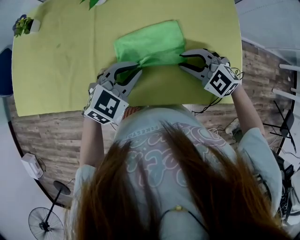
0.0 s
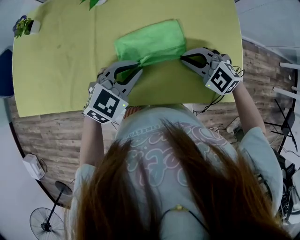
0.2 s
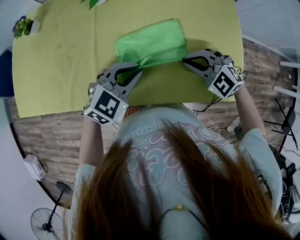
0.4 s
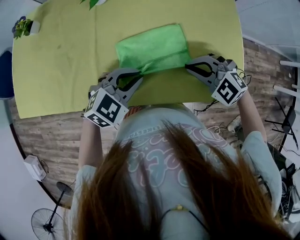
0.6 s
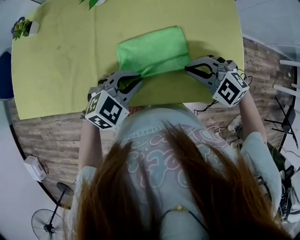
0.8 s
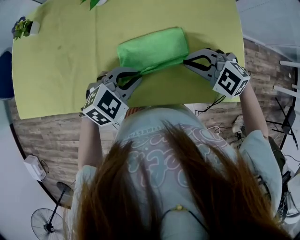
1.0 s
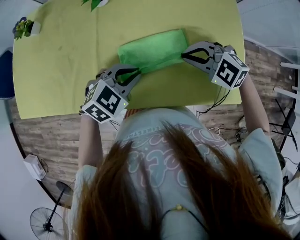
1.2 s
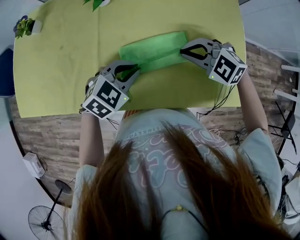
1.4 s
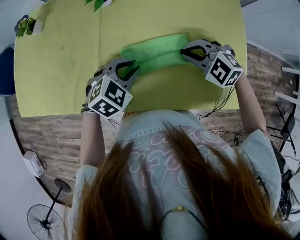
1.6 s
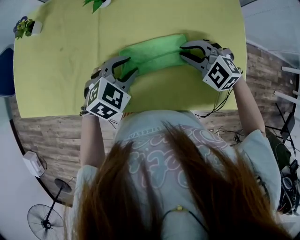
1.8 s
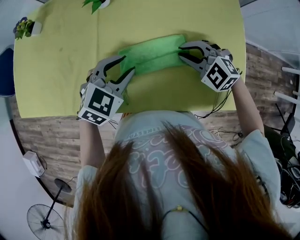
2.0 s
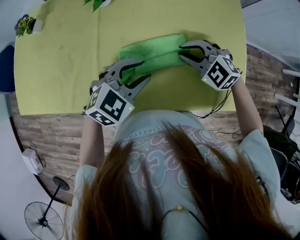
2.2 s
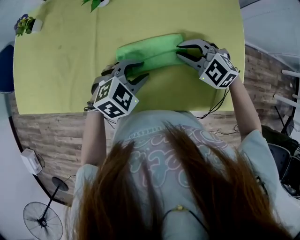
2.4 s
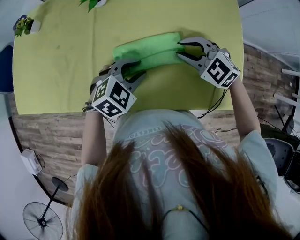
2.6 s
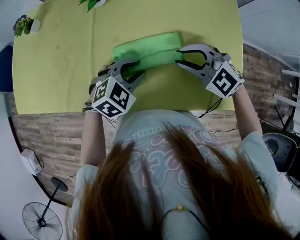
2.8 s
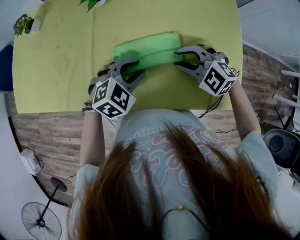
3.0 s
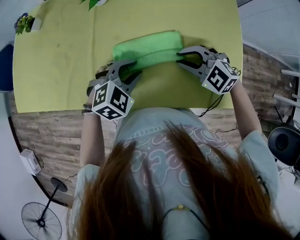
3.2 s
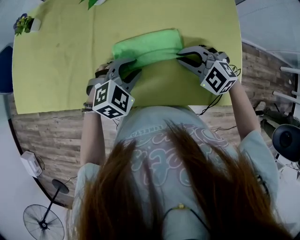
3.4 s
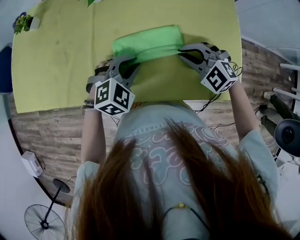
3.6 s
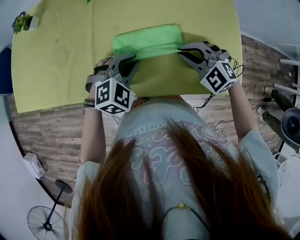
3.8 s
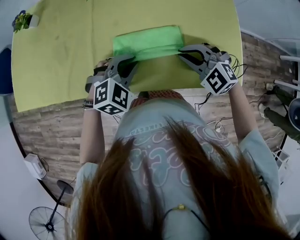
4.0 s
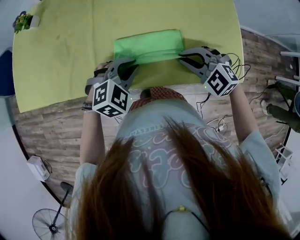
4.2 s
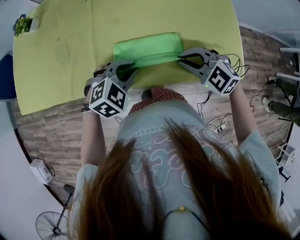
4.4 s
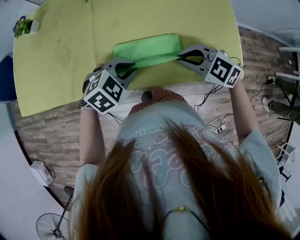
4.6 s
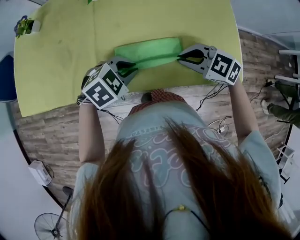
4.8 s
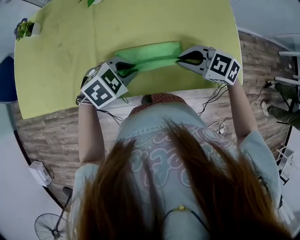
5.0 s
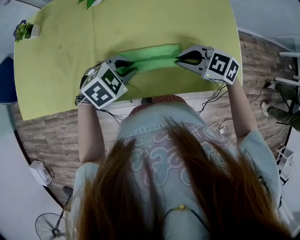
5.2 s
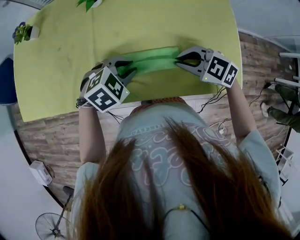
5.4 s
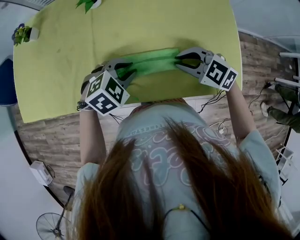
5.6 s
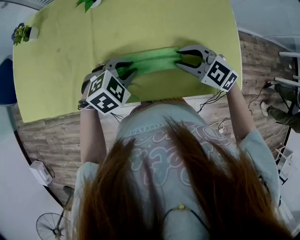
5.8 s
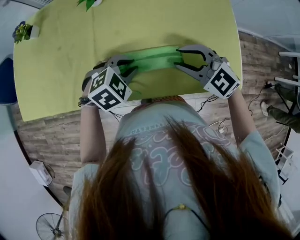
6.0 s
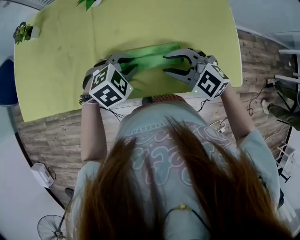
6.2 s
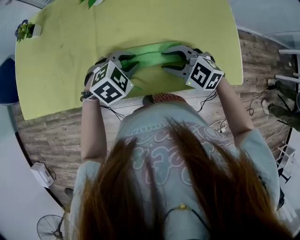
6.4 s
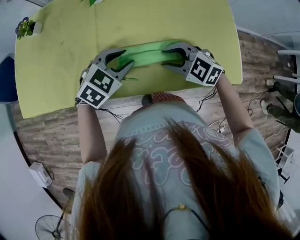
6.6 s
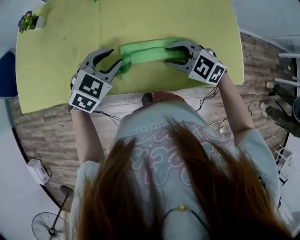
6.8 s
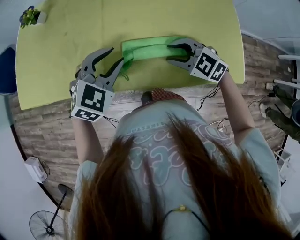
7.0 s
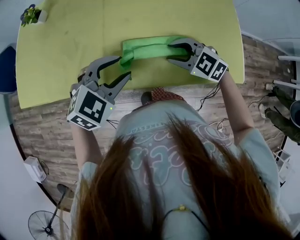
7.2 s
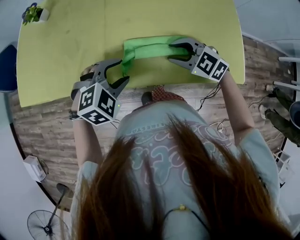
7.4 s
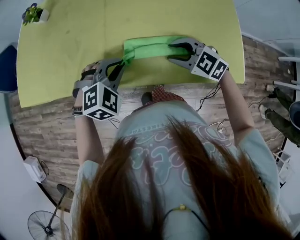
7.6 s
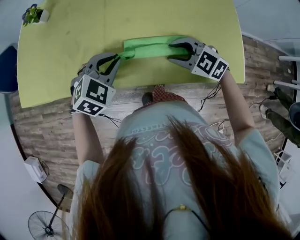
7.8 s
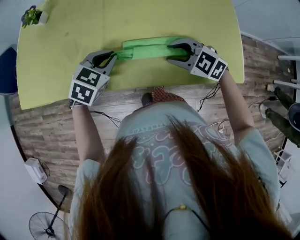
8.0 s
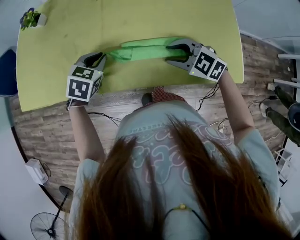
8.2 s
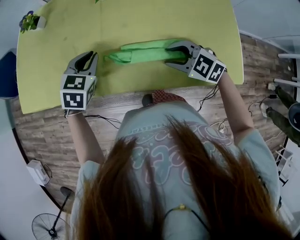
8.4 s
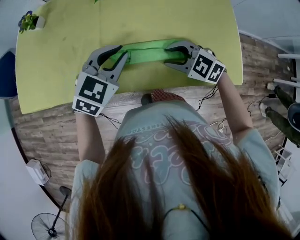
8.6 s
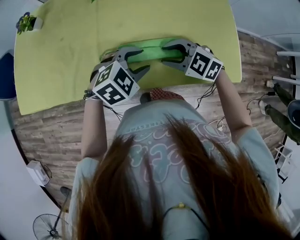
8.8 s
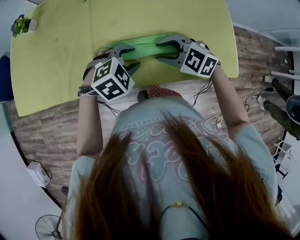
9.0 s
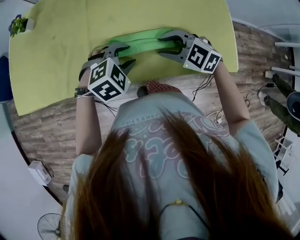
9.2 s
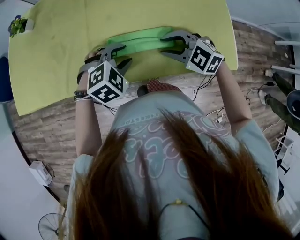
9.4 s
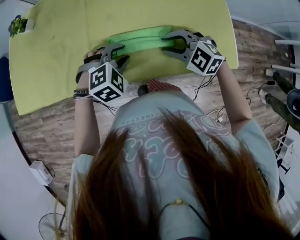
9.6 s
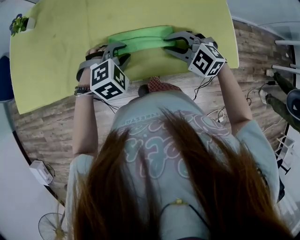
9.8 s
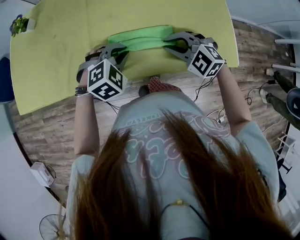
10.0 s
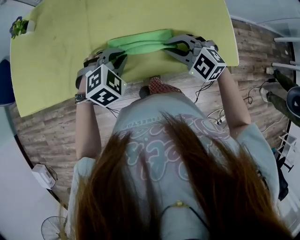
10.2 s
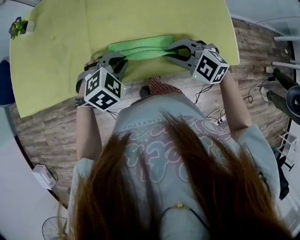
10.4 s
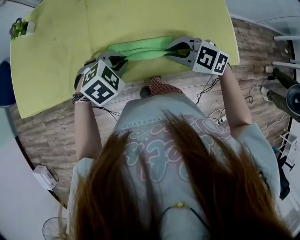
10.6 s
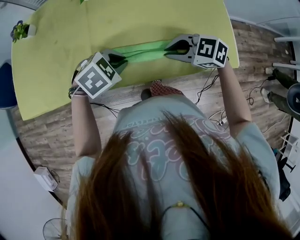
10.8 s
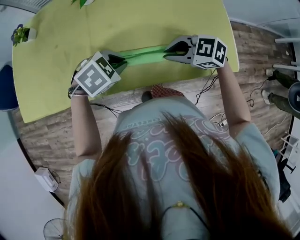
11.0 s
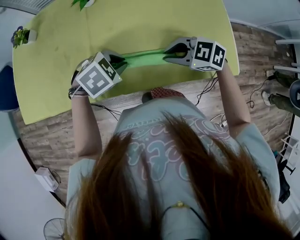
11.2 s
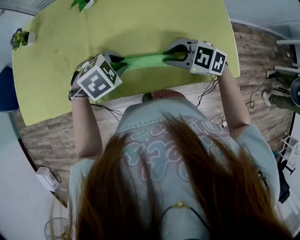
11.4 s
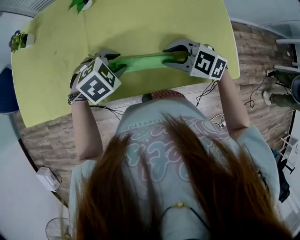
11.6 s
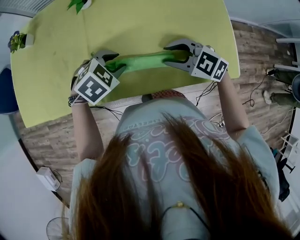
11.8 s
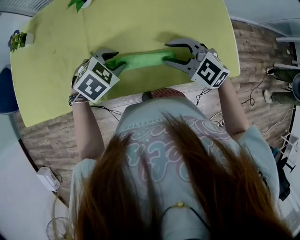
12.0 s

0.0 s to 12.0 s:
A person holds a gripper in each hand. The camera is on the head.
0.0 to 1.6 s: The left gripper moves about 5 cm.
1.6 to 3.0 s: The right gripper opens.
3.0 to 4.4 s: The right gripper travels backward by about 10 cm, and closes. The left gripper heads backward and to the left, covering approximately 10 cm.
4.4 to 6.0 s: The left gripper moves approximately 5 cm, while the right gripper shifts by roughly 5 cm, and opens.
6.0 to 7.6 s: The left gripper shifts some 5 cm to the left, and opens and closes again; the right gripper shifts by roughly 5 cm.
7.6 to 9.0 s: The left gripper changes place by about 10 cm, and opens its fingers.
9.0 to 10.4 s: The left gripper closes up, while the right gripper ends up approximately 5 cm from where it was, and closes up.
10.4 to 12.0 s: The right gripper ends up some 5 cm from where it was, and opens its fingers; the left gripper ends up some 5 cm from where it was, and opens.

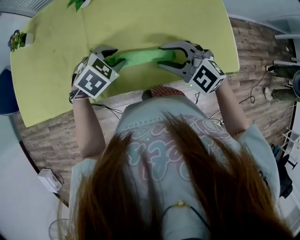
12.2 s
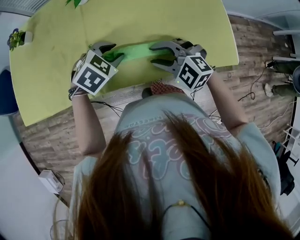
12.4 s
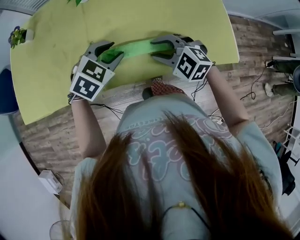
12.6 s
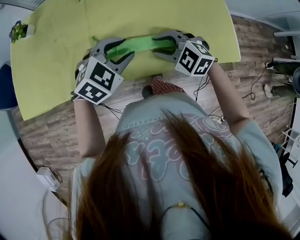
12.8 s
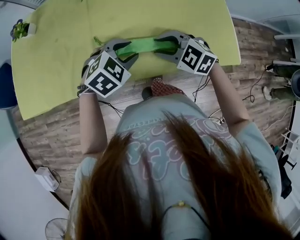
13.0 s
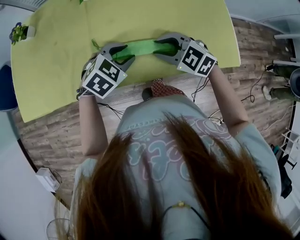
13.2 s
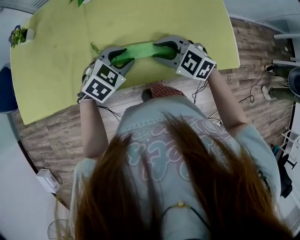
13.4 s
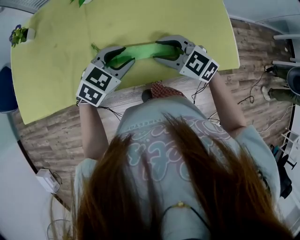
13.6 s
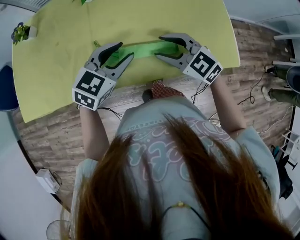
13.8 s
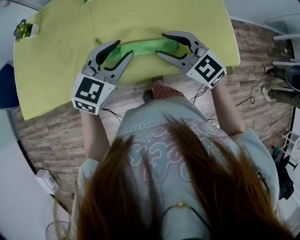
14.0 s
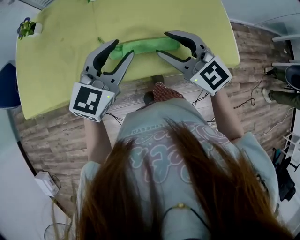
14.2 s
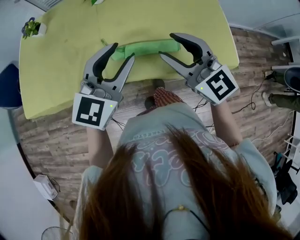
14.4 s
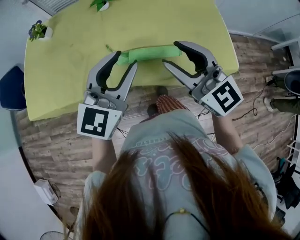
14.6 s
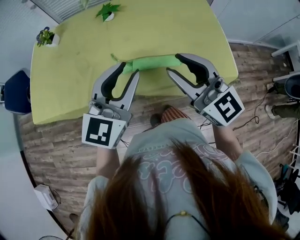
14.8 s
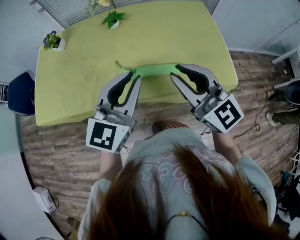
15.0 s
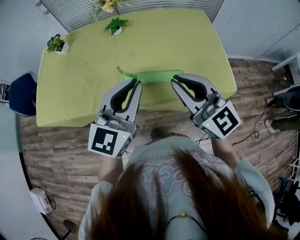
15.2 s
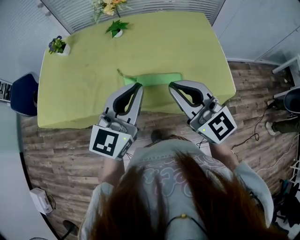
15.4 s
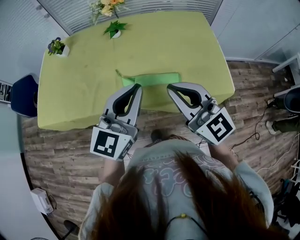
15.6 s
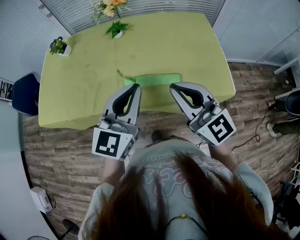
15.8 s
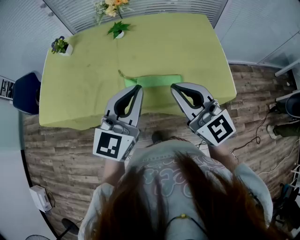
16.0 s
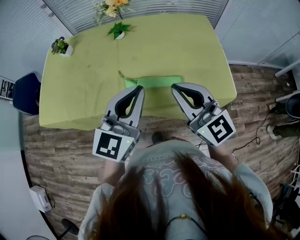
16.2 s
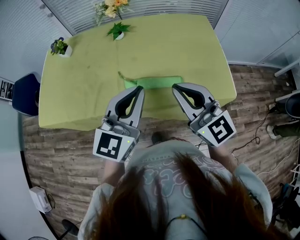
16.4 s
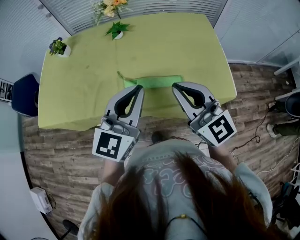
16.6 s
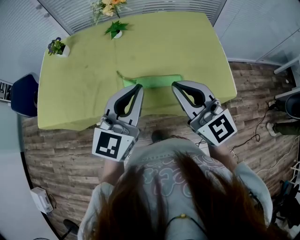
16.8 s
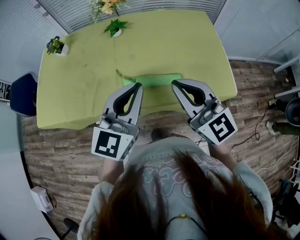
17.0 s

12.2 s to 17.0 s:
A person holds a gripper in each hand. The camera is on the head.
12.2 to 13.8 s: The left gripper swings up and down, some 5 cm each way, with 2 reversals, and tips its fingers upward by approximately 30 degrees.
13.8 to 15.4 s: The two grippers go roughly 20 cm upward and backward. The right gripper points its fingers approximately 30 degrees further upward, and closes up. Meanwhile the left gripper tips its fingers upward by approximately 30 degrees, and closes.
15.4 to 17.0 s: The grippers move only a little.

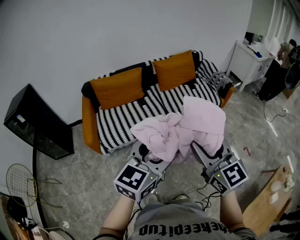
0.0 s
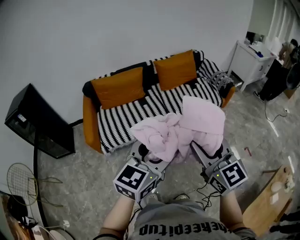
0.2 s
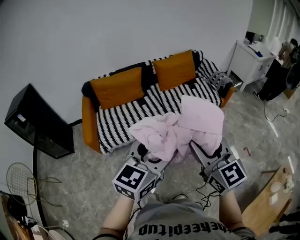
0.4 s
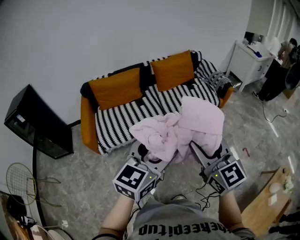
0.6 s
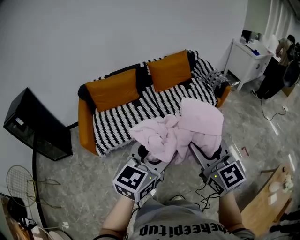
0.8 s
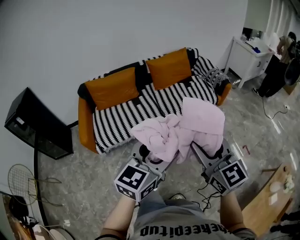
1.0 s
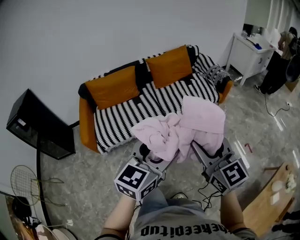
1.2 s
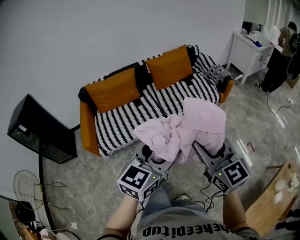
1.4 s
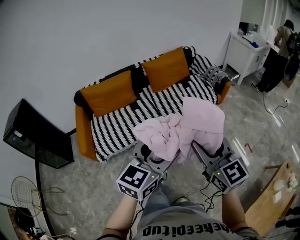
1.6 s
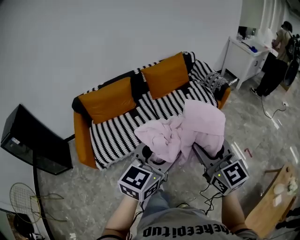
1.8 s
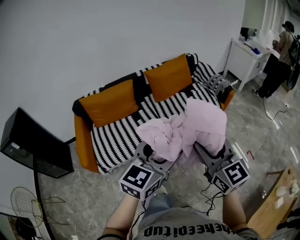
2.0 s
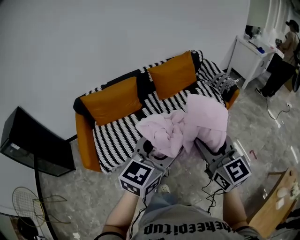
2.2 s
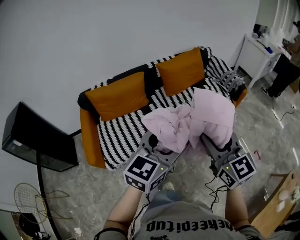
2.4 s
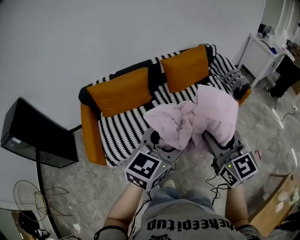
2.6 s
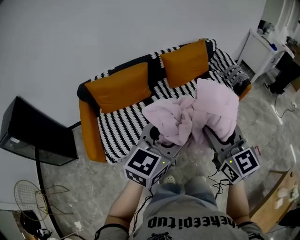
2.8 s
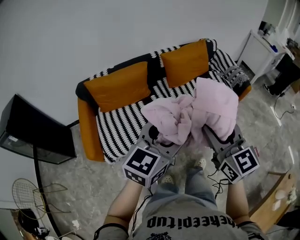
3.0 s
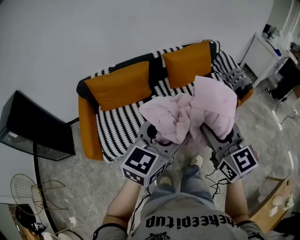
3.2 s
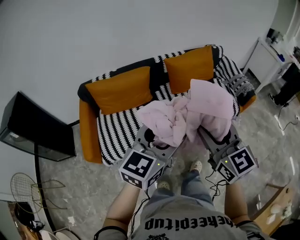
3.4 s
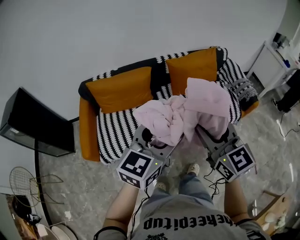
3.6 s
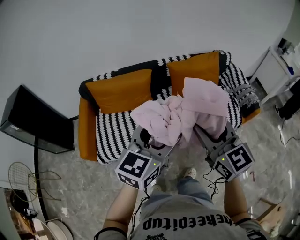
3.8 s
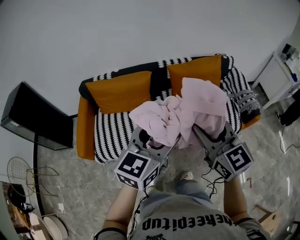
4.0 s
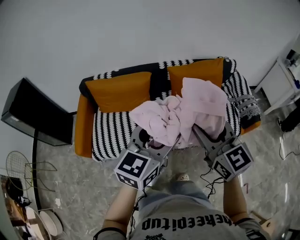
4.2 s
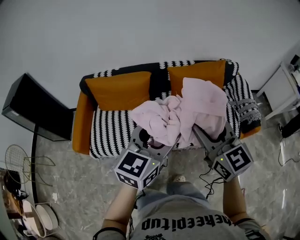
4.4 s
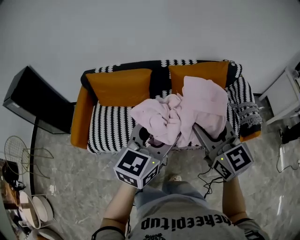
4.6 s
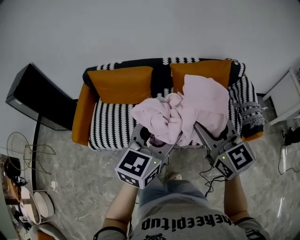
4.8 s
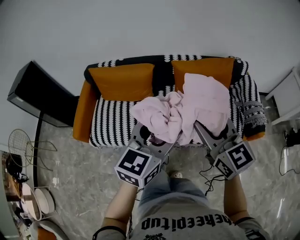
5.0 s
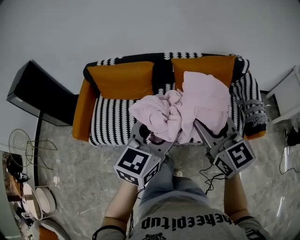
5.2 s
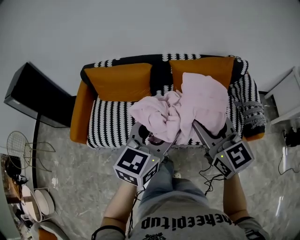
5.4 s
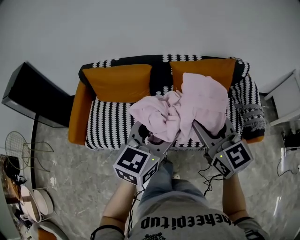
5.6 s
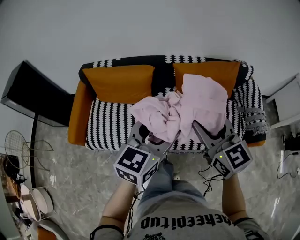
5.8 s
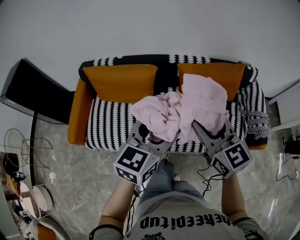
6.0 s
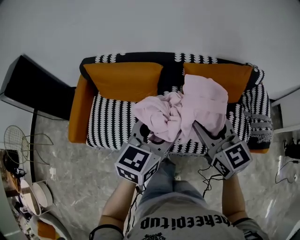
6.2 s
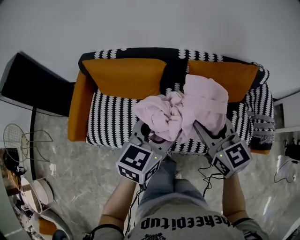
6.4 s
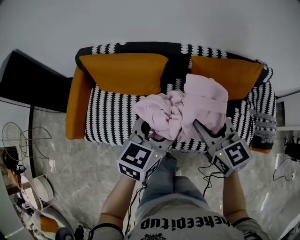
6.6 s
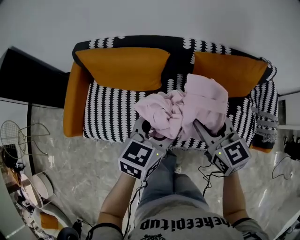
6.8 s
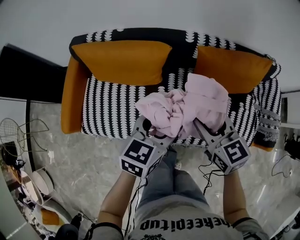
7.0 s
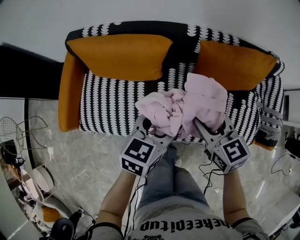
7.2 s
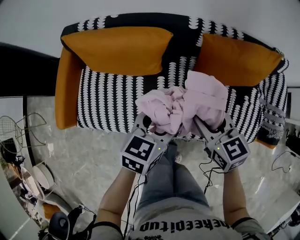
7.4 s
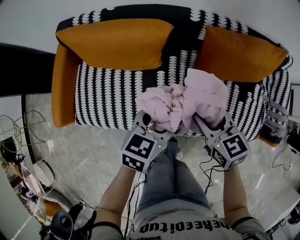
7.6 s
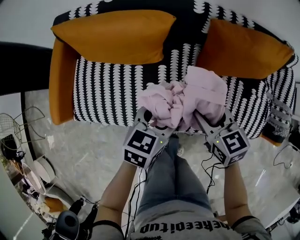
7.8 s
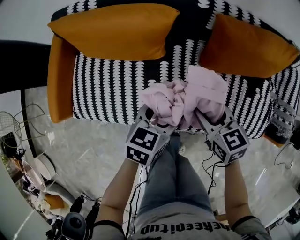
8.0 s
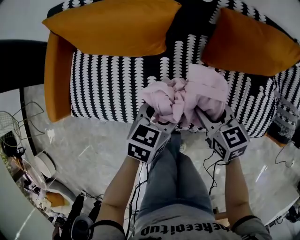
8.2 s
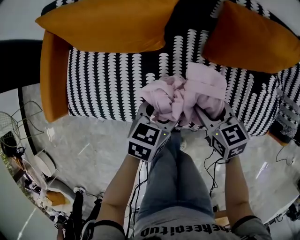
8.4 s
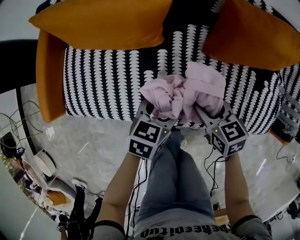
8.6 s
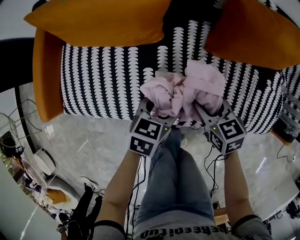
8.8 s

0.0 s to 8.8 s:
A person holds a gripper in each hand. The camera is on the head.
0.0 to 1.4 s: The two grippers go about 10 cm to the right.
1.4 to 3.0 s: Both grippers travel together forward and to the left, some 30 cm.
3.0 to 4.4 s: The right gripper travels forward by some 20 cm, and rotates approximately 20 degrees, while the left gripper travels forward and to the right by approximately 15 cm, and rotates some 20 degrees.
4.4 to 5.8 s: Both grippers move forward and to the right, approximately 15 cm.
5.8 to 7.4 s: The two grippers go some 30 cm downward and forward. The right gripper rotates about 30 degrees; the left gripper turns by approximately 20 degrees.
7.4 to 8.8 s: Both grippers travel together downward, approximately 25 cm.
